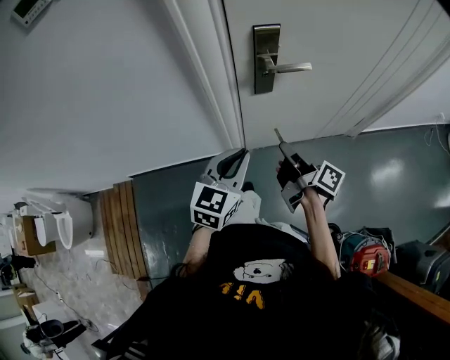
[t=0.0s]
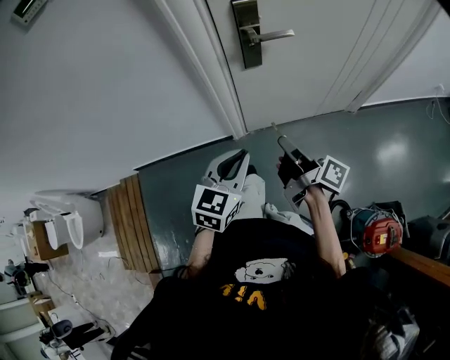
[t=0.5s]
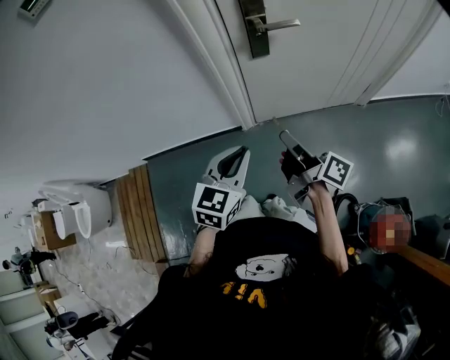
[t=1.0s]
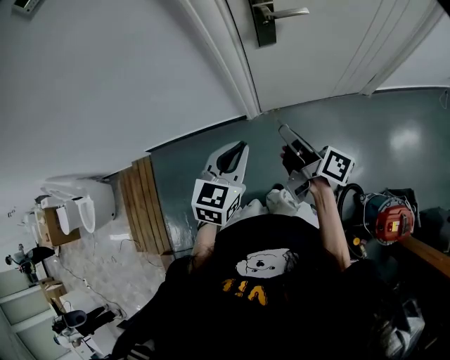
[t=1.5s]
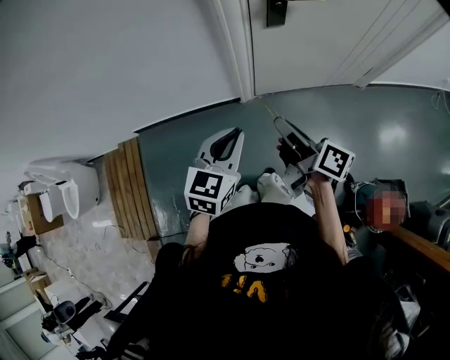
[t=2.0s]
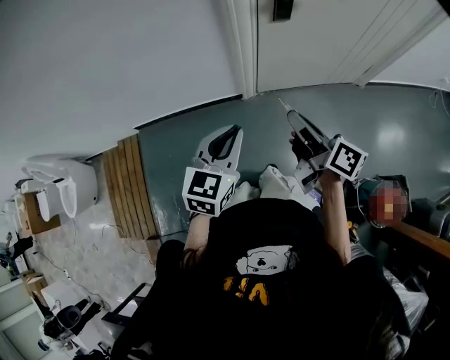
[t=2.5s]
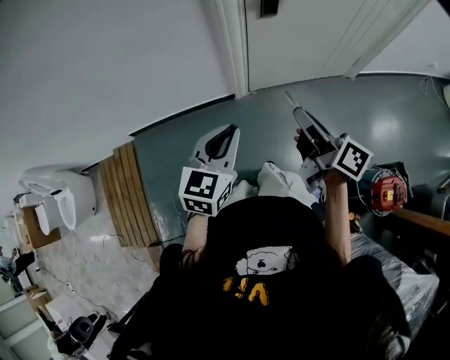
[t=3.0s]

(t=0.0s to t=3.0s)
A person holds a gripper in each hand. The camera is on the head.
t=0.0s - t=1.5s: Both grippers travel together backward, approximately 10 cm.
t=1.5s - t=3.0s: The left gripper shifts approximately 15 cm to the left and backward. The right gripper is displaced backward and to the left by roughly 10 cm.

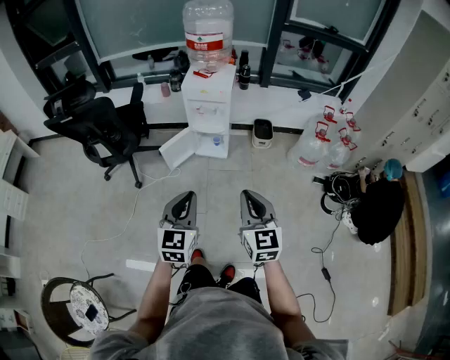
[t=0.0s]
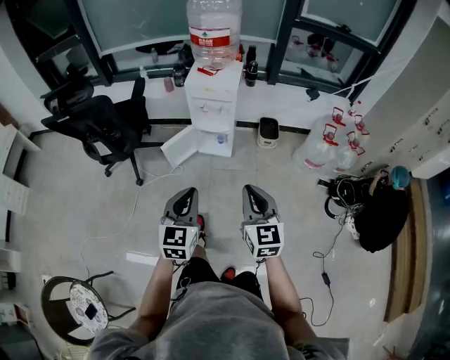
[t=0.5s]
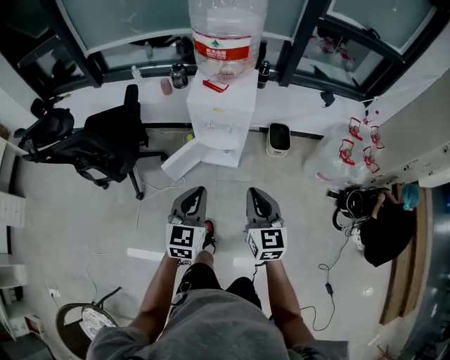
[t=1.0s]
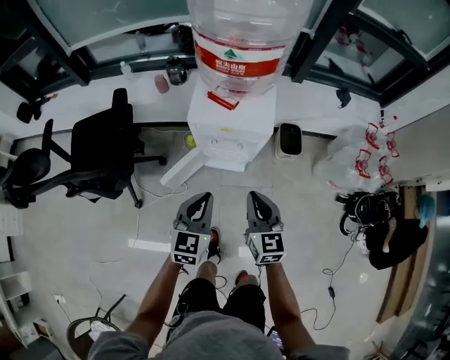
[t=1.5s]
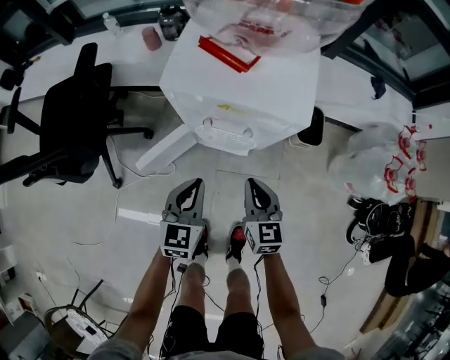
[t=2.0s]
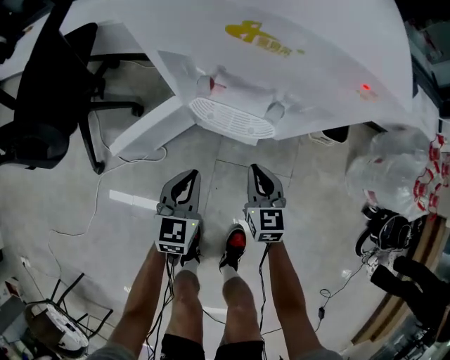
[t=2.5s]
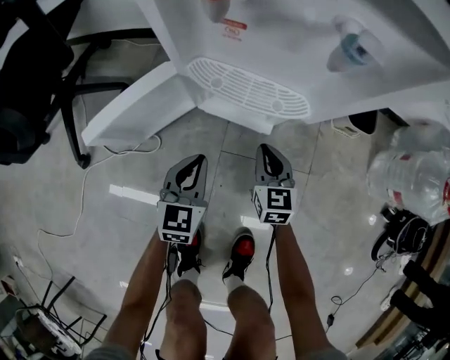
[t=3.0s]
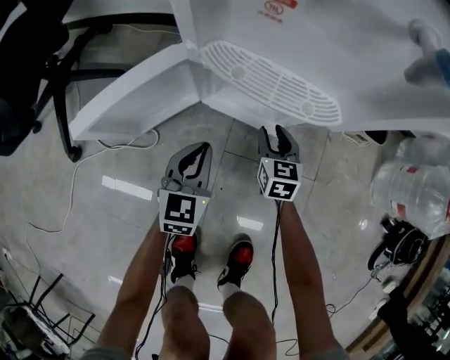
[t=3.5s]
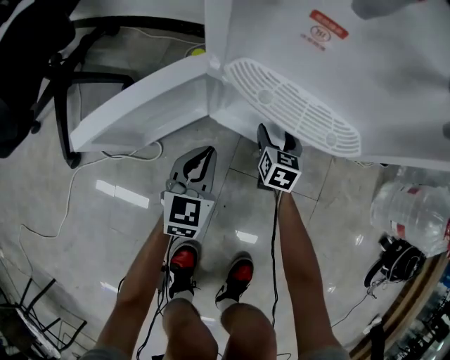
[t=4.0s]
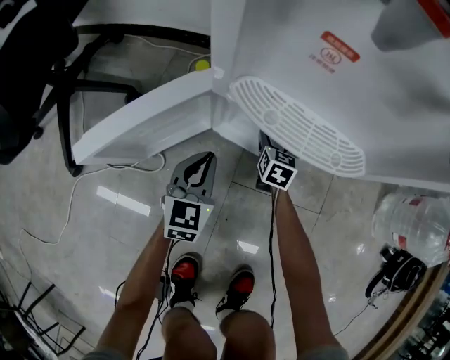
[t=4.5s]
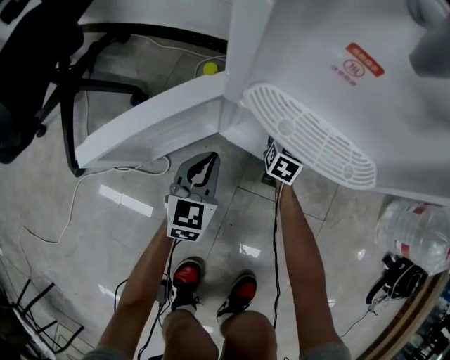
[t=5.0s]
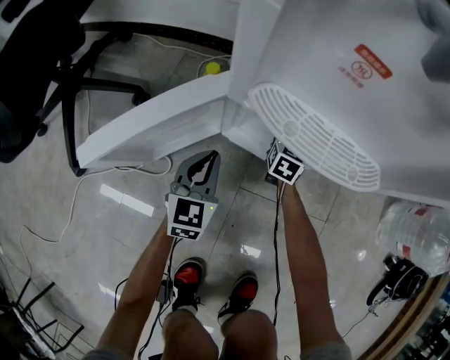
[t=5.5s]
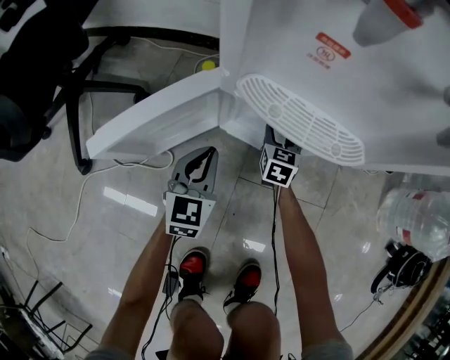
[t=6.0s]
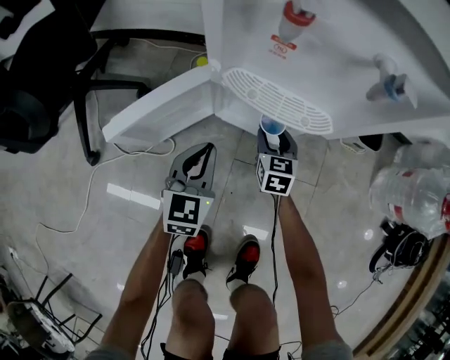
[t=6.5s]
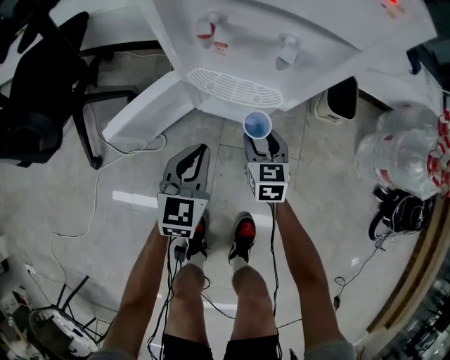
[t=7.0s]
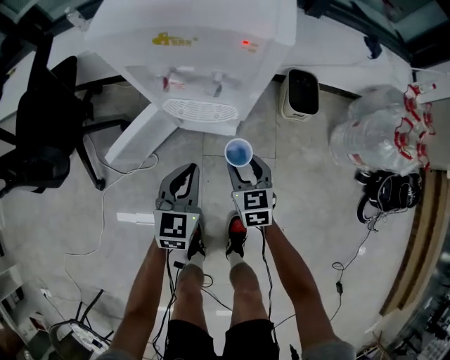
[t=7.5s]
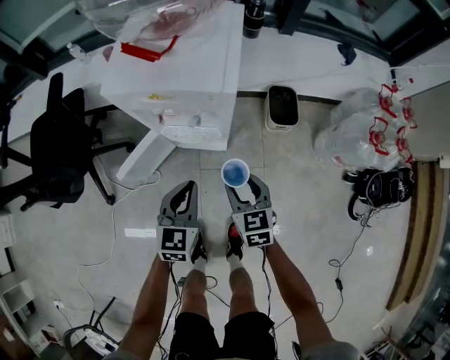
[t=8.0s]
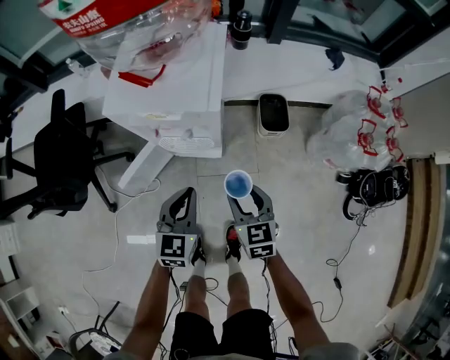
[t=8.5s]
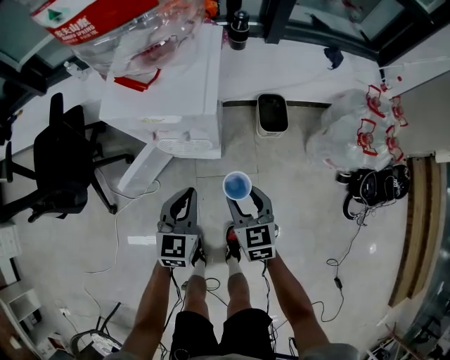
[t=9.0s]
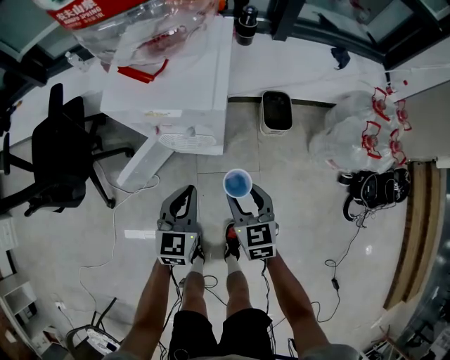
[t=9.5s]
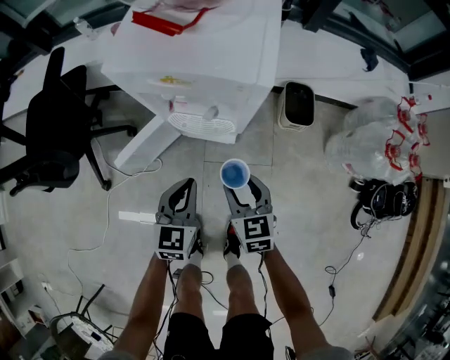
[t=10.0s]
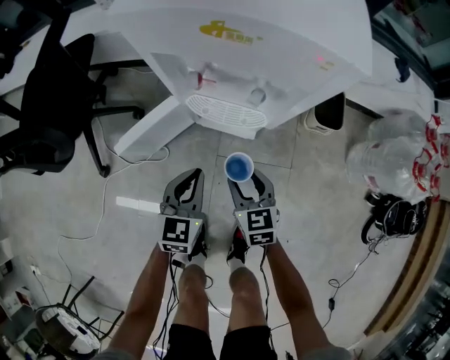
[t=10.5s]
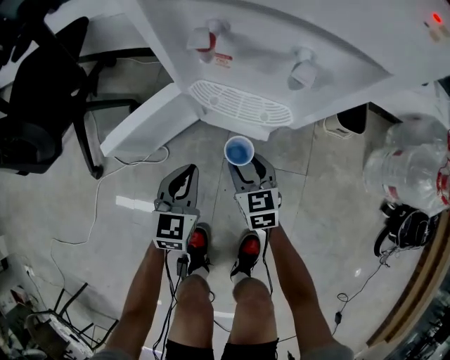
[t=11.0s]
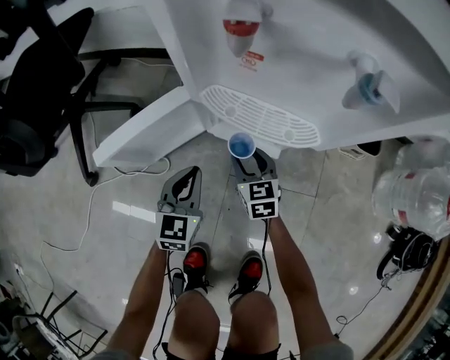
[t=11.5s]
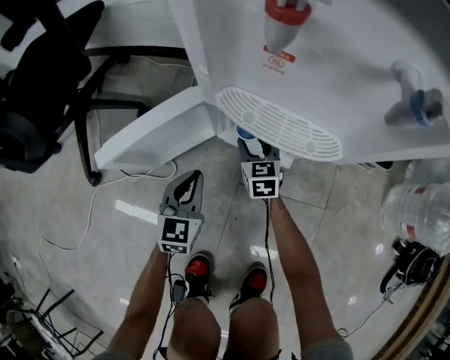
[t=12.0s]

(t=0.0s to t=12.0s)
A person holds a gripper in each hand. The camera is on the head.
t=0.0s - t=2.0s: The pair of grippers is taken forward, some 50 cm. Both grippers travel together downward, some 40 cm.
t=2.0s - t=4.0s: The grippers both shift downward by roughly 40 cm. The right gripper opens.
t=6.0s - t=8.0s: The left gripper goes approximately 40 cm upward and to the right. Meanwhile the right gripper heads upward and backward, covering about 50 cm.
t=8.0s - t=10.0s: The left gripper is displaced downward by roughly 5 cm.
t=10.0s - t=12.0s: The right gripper is displaced downward and forward by approximately 40 cm; the left gripper goes about 35 cm downward.

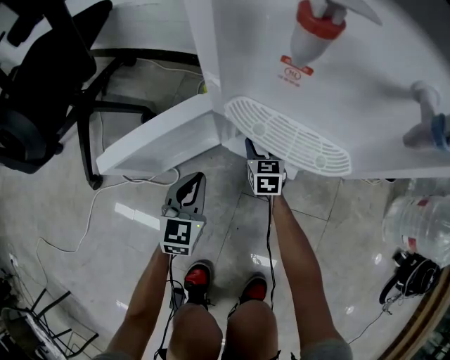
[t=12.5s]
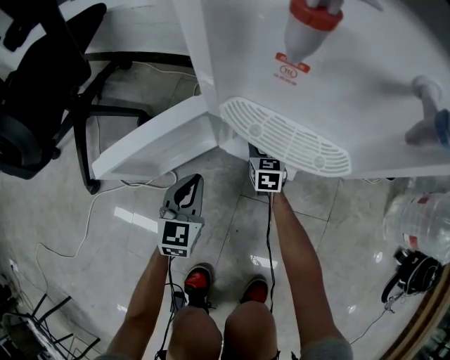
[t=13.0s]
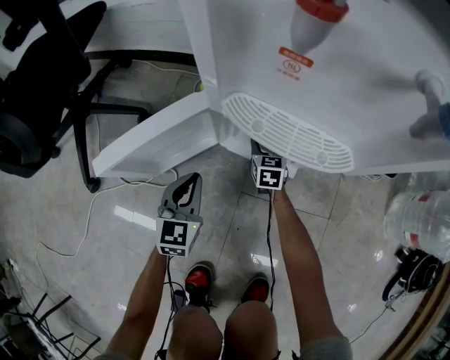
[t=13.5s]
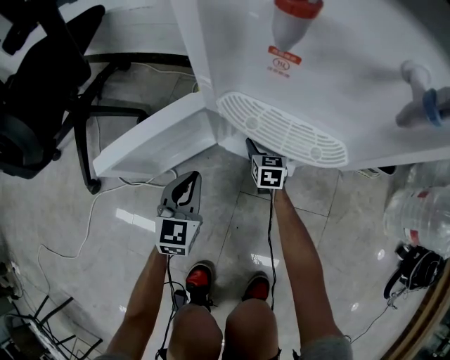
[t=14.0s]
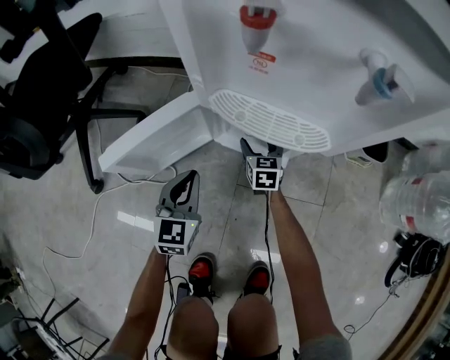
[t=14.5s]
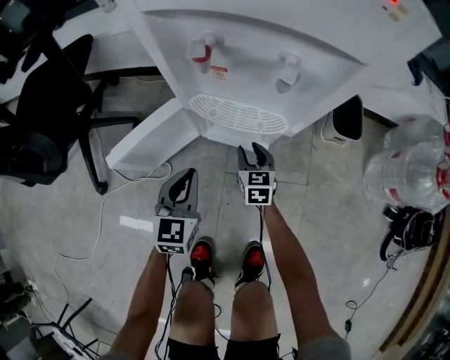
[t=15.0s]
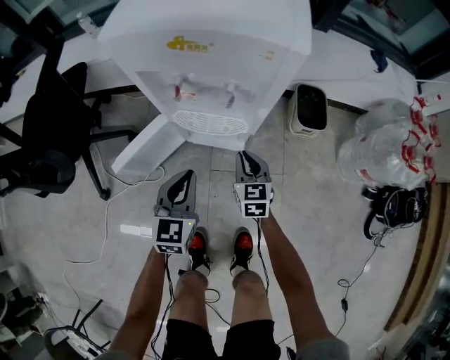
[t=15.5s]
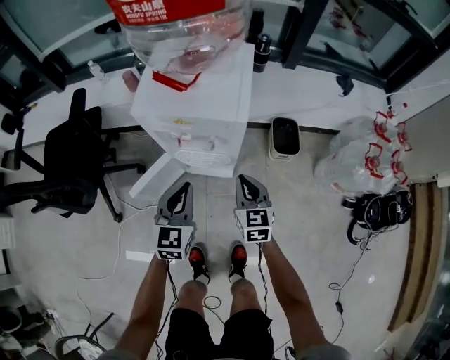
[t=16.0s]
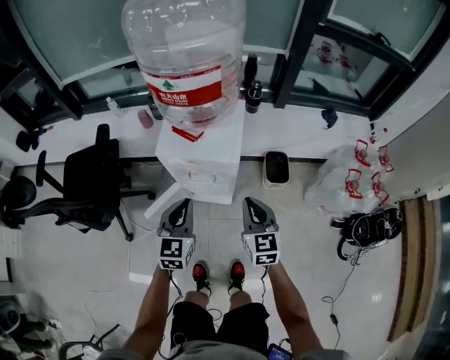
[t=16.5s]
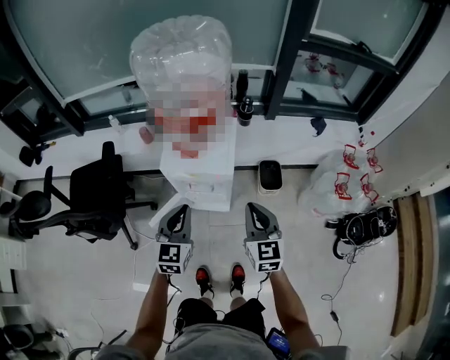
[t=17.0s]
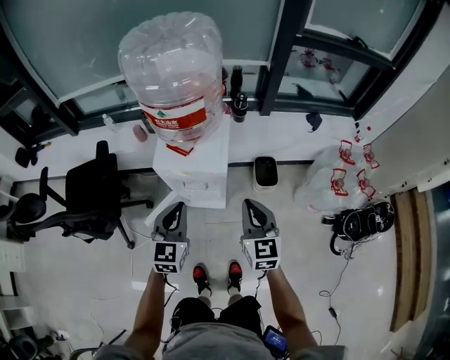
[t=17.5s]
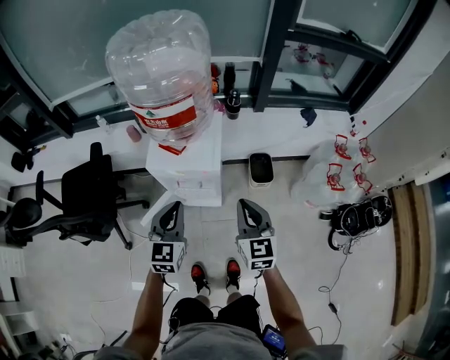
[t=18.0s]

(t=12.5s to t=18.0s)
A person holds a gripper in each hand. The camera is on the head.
t=12.5s - t=14.5s: The right gripper opens.
t=14.5s - t=16.0s: Both grippers move upward, roughly 40 cm. The right gripper closes up.
t=16.0s - t=18.0s: The grippers both shift upward by approximately 25 cm.

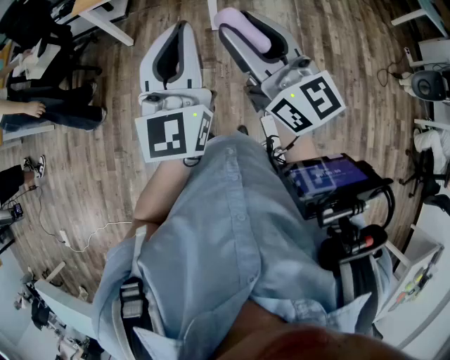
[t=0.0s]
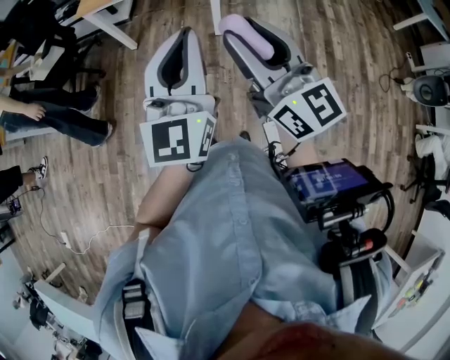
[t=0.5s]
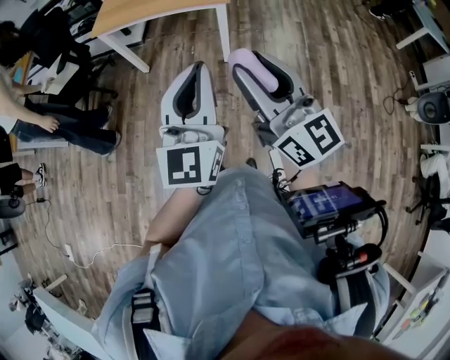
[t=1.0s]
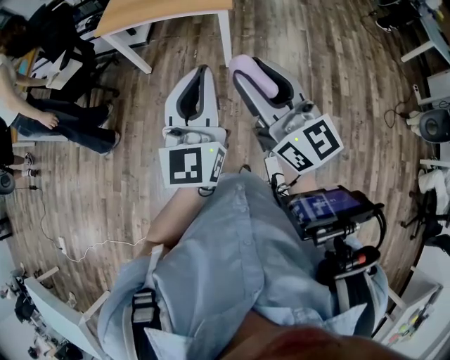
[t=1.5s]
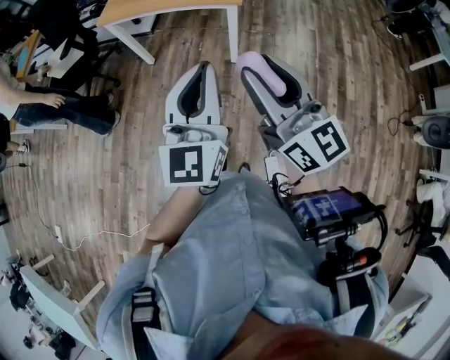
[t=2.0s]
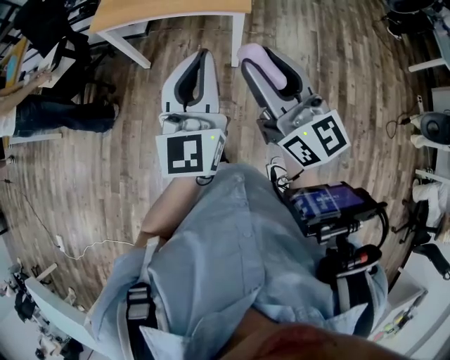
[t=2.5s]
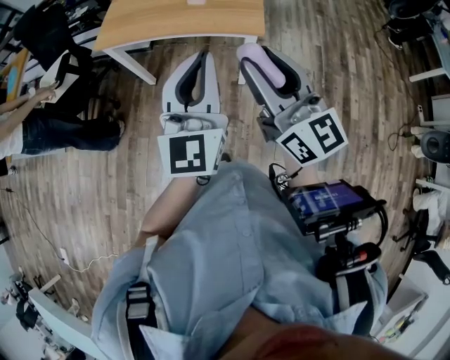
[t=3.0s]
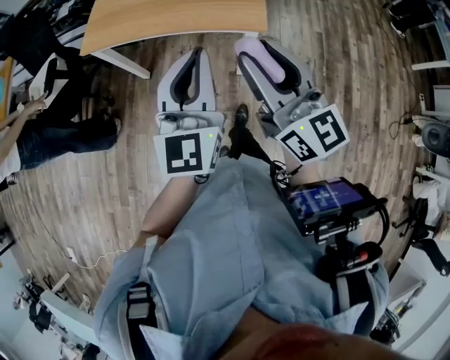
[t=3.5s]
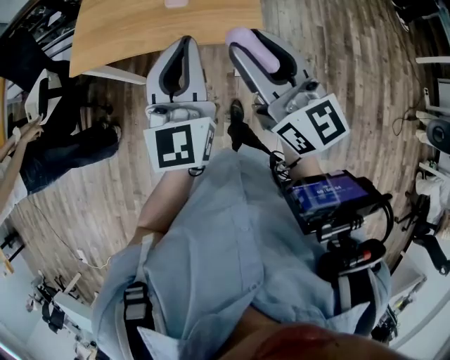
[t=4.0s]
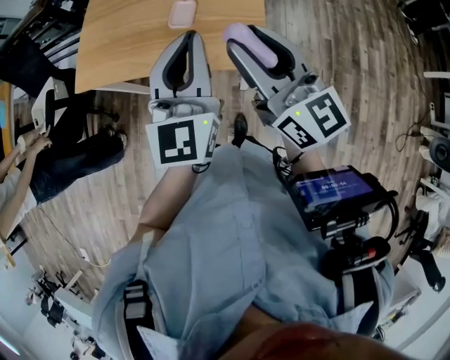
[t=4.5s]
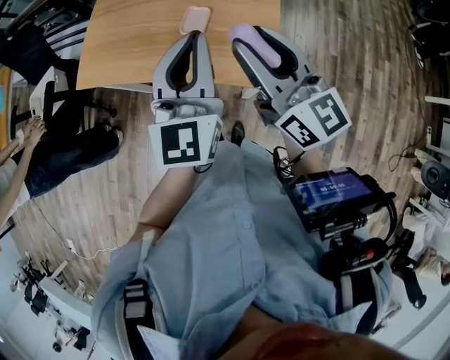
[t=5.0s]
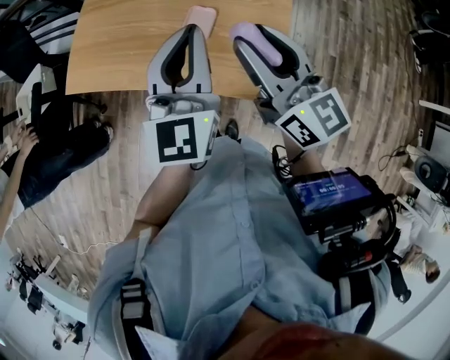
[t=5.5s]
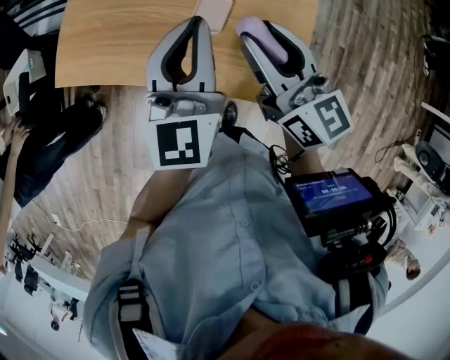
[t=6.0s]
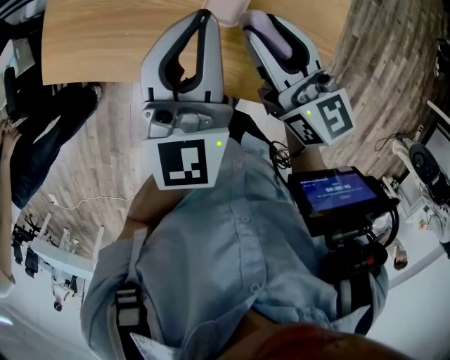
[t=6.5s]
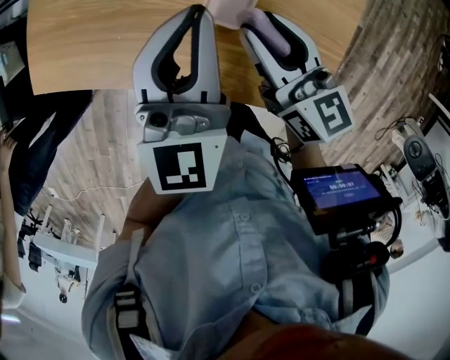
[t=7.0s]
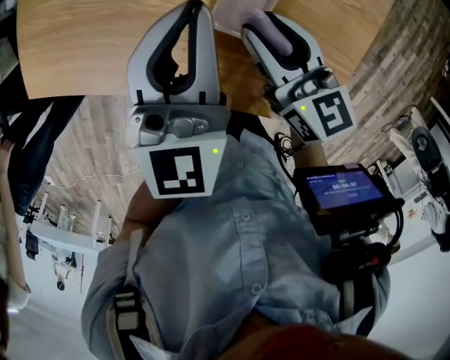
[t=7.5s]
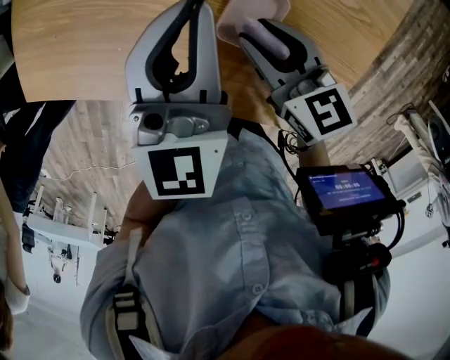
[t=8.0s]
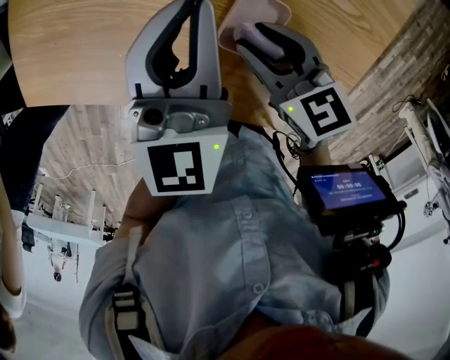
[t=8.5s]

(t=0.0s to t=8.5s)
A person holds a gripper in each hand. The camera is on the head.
t=0.0s - t=2.0s: The right gripper changes place by approximately 5 cm. The left gripper changes place by some 5 cm.
t=2.0s - t=4.0s: The two grippers travel together, forward, about 40 cm.
t=4.0s - t=6.5s: The right gripper is displaced forward and downward by roughly 40 cm, and turns by some 20 degrees. Meanwhile the left gripper goes roughly 35 cm forward.
t=6.5s - t=8.5s: The right gripper is displaced downward by about 10 cm, and changes its angle by roughly 30 degrees, while the left gripper heads forward and downward, covering roughly 10 cm.
